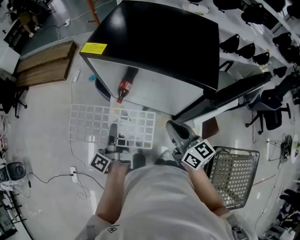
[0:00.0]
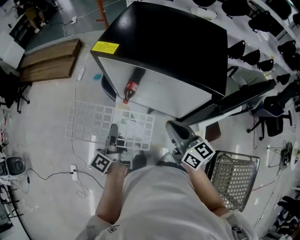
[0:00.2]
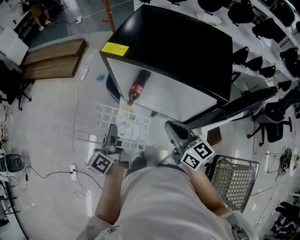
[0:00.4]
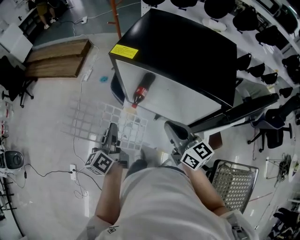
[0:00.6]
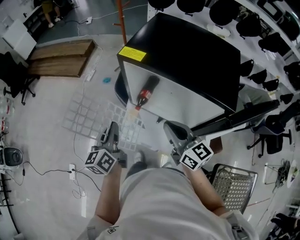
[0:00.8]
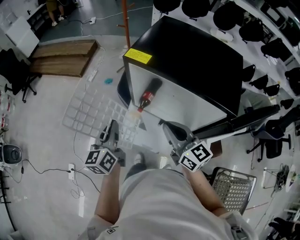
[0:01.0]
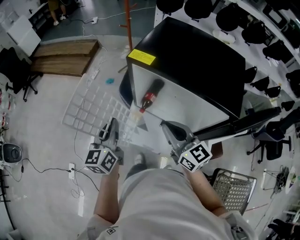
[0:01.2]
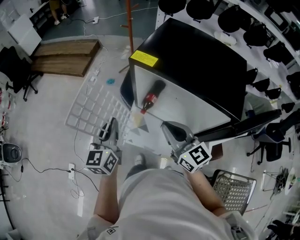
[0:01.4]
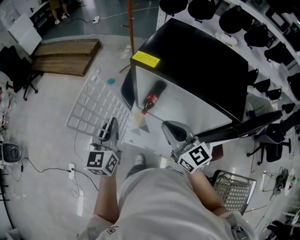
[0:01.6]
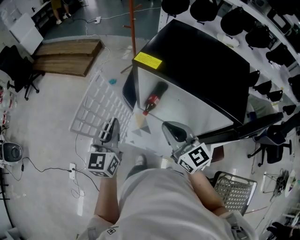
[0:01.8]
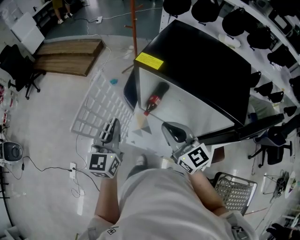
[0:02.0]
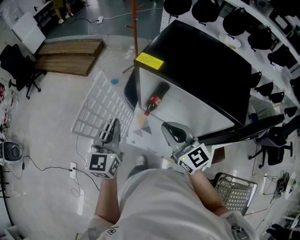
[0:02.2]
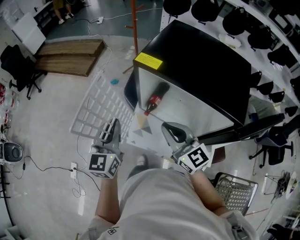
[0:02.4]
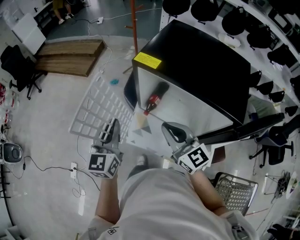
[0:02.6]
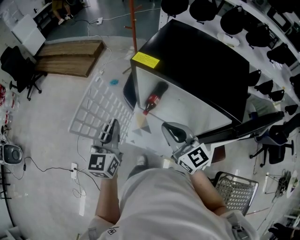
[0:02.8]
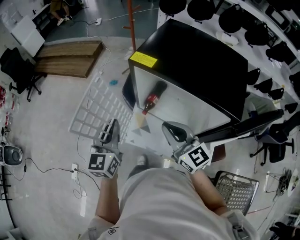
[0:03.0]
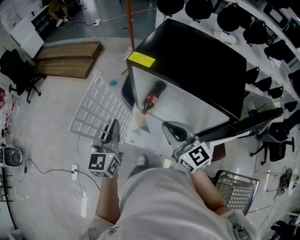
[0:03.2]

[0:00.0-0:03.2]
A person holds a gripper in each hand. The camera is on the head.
0:00.0 to 0:01.6: The right gripper is displaced to the left, forward and upward by some 15 cm, and rotates roughly 20 degrees, while the left gripper moves upward, to the left and forward, approximately 15 cm, and twists some 70 degrees clockwise, seen from behind.
0:01.6 to 0:03.2: The grippers stay close to where they were, moving slightly.

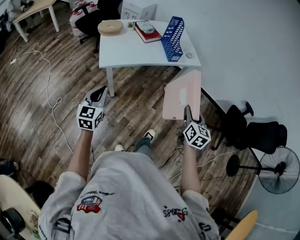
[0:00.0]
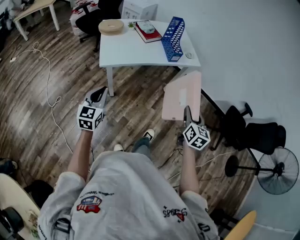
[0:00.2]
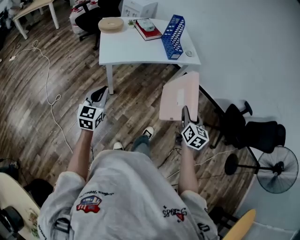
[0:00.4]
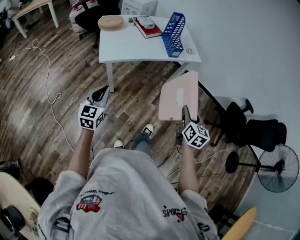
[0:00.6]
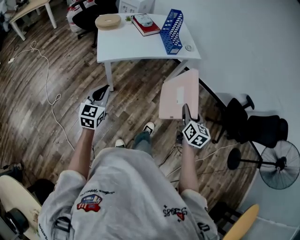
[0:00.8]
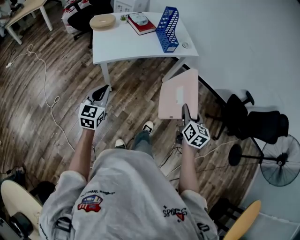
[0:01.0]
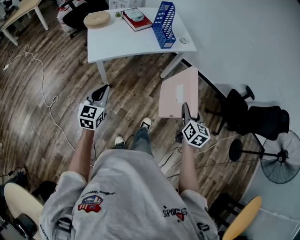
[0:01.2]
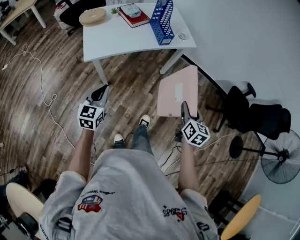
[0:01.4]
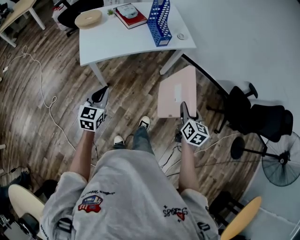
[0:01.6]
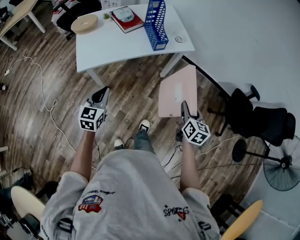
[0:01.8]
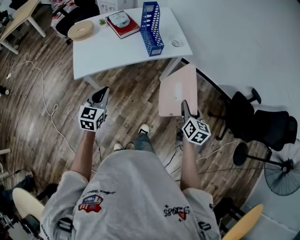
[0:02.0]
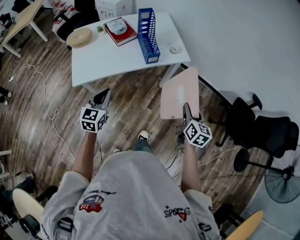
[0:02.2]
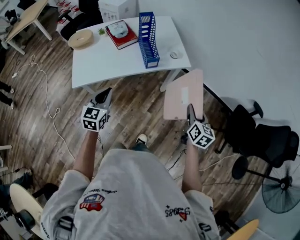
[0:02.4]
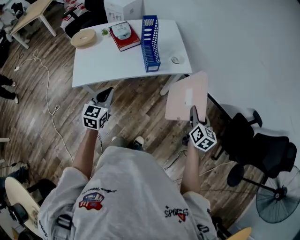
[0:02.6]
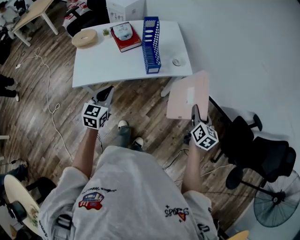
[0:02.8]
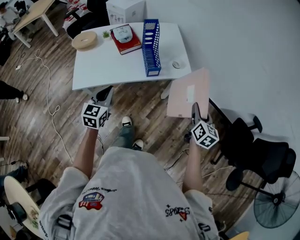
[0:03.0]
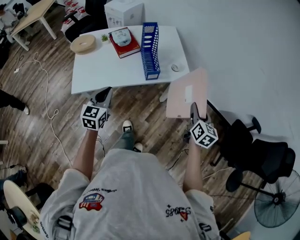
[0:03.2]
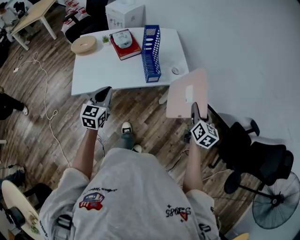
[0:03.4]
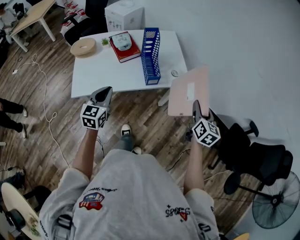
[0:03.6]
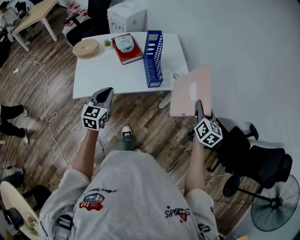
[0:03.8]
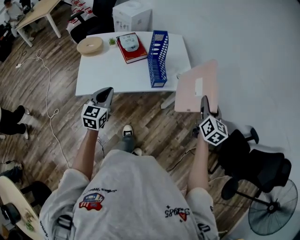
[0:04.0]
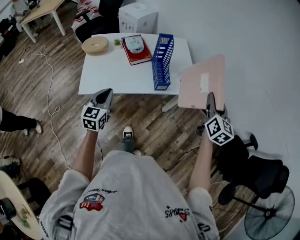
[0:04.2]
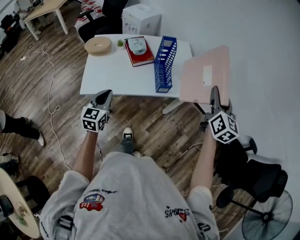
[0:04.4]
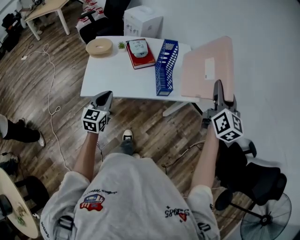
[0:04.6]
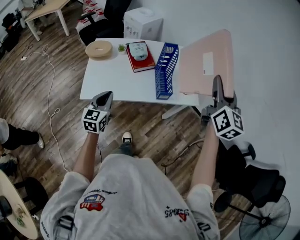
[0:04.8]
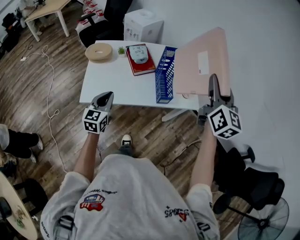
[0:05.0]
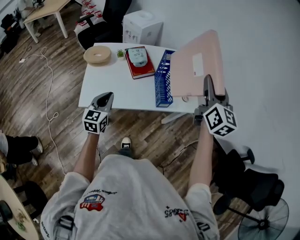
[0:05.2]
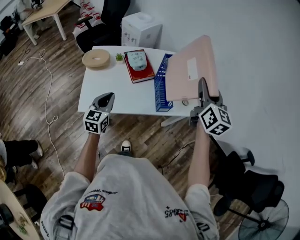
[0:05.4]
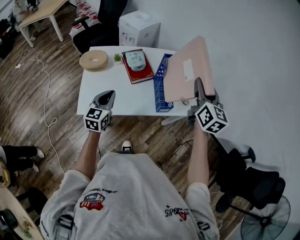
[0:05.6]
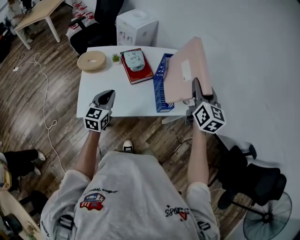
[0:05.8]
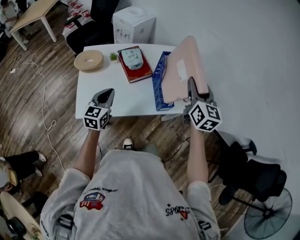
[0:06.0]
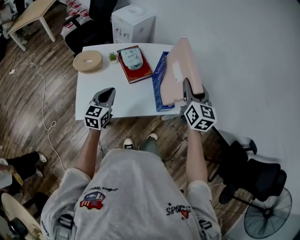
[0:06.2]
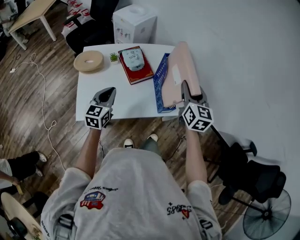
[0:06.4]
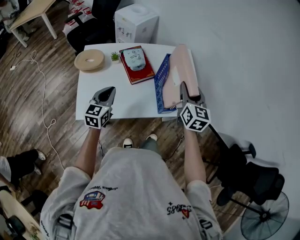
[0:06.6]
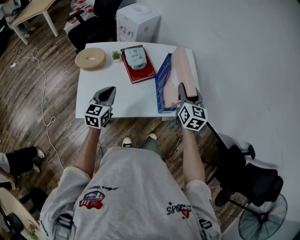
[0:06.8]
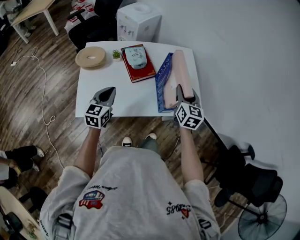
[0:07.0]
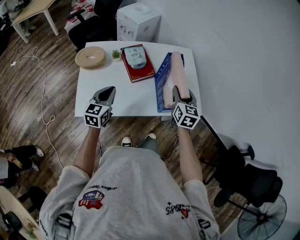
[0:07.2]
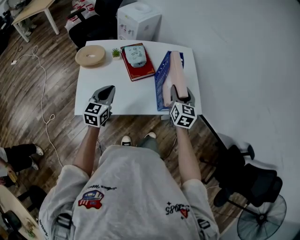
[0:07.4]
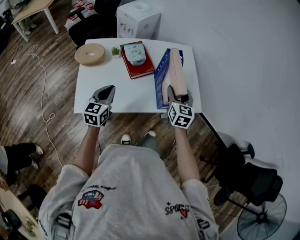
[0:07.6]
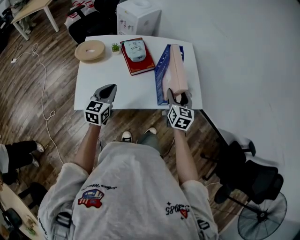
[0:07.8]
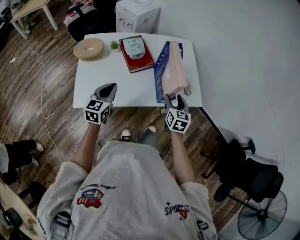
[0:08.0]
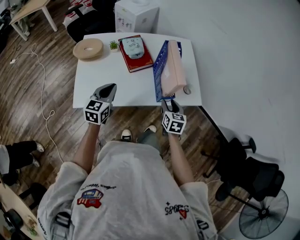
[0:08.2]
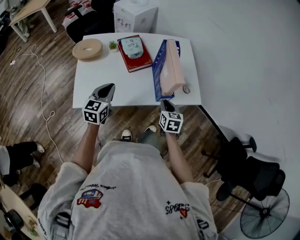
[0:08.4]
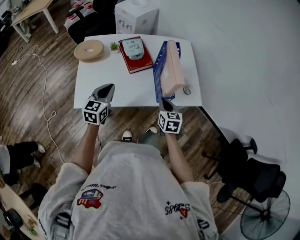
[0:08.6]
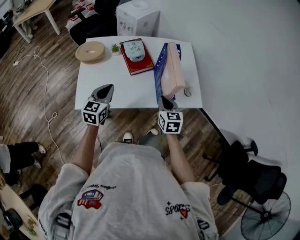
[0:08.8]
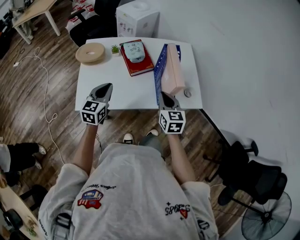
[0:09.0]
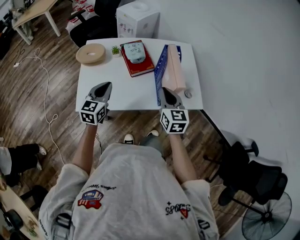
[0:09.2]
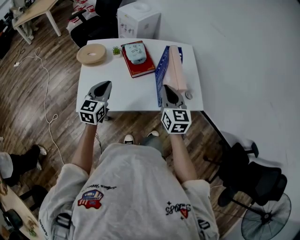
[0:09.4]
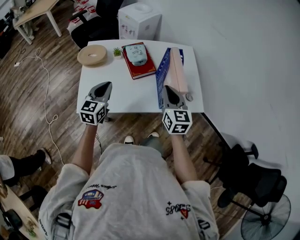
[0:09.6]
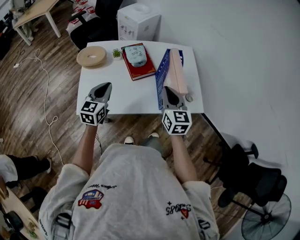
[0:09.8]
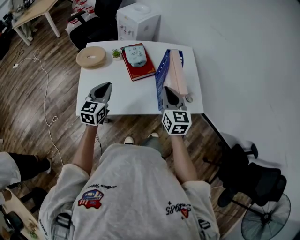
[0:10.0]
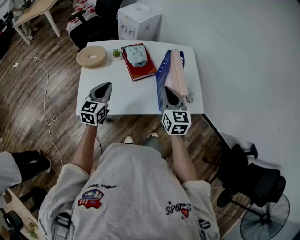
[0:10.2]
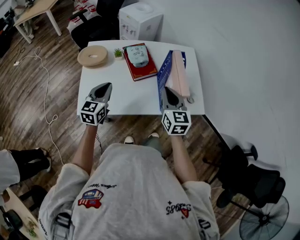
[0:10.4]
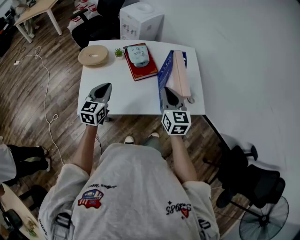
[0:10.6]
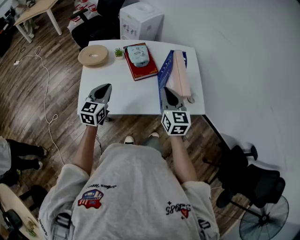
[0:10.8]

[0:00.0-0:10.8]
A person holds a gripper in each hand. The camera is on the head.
0:00.0 to 0:01.6: The left gripper heads to the right, forward and downward, covering some 15 cm, while the right gripper shifts roughly 10 cm to the right, downward and forward.
0:01.6 to 0:03.0: The two grippers go about 30 cm forward and to the right.
0:03.0 to 0:04.6: The left gripper goes roughly 10 cm to the left. The right gripper is displaced upward, to the left and forward by approximately 30 cm, and rotates approximately 30 degrees.
0:04.6 to 0:06.2: The right gripper heads forward, to the left and downward, covering about 25 cm; the left gripper shifts about 20 cm forward.
0:06.2 to 0:07.8: The right gripper heads downward, covering some 15 cm, and opens.
0:07.8 to 0:09.2: The right gripper goes approximately 5 cm to the left, travels downward and back again, about 10 cm each way, and closes its fingers.
0:09.2 to 0:10.8: The grippers make only small movements.

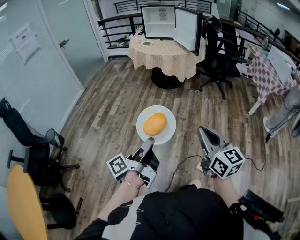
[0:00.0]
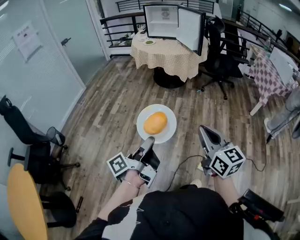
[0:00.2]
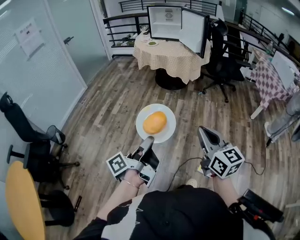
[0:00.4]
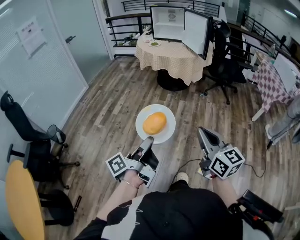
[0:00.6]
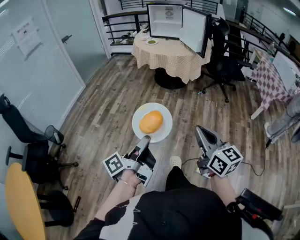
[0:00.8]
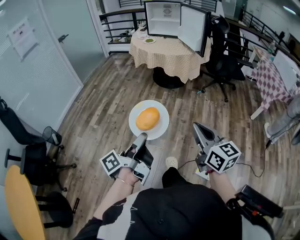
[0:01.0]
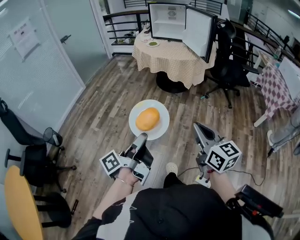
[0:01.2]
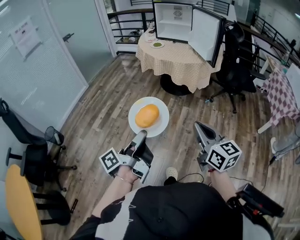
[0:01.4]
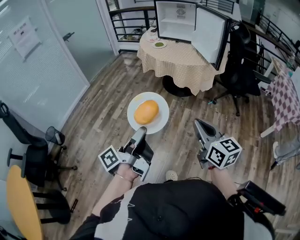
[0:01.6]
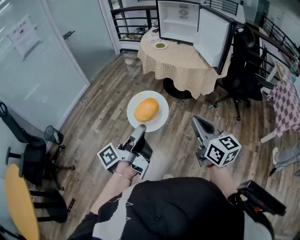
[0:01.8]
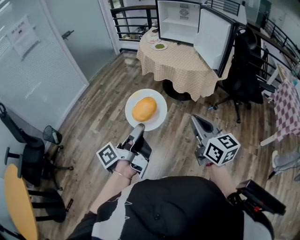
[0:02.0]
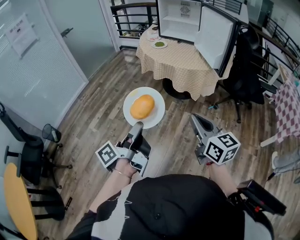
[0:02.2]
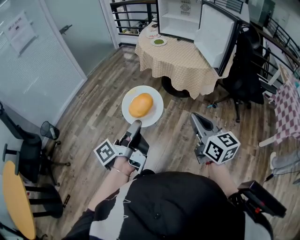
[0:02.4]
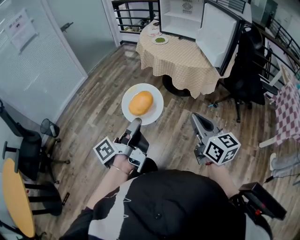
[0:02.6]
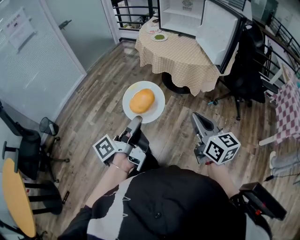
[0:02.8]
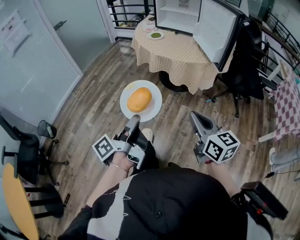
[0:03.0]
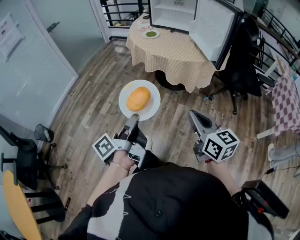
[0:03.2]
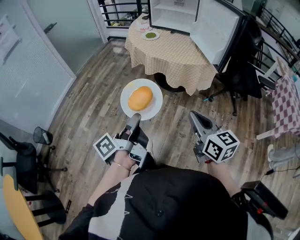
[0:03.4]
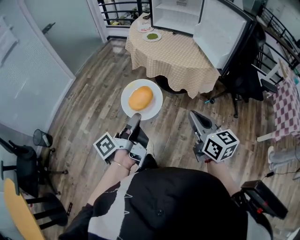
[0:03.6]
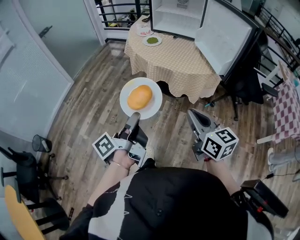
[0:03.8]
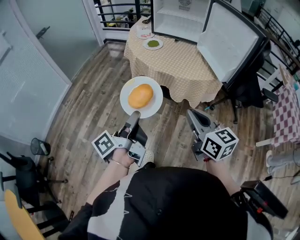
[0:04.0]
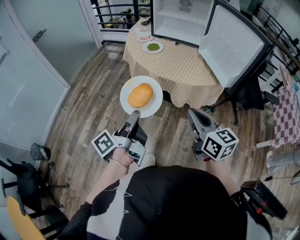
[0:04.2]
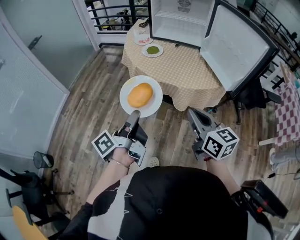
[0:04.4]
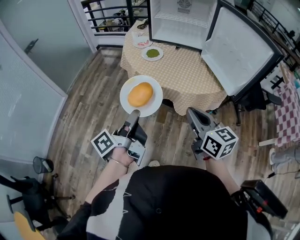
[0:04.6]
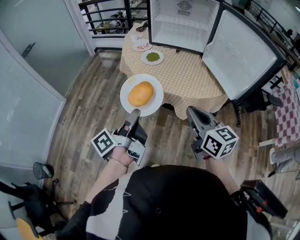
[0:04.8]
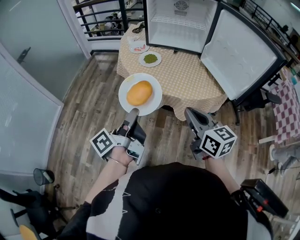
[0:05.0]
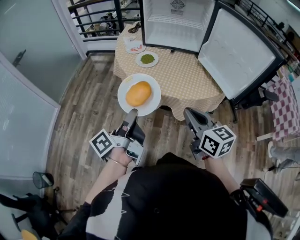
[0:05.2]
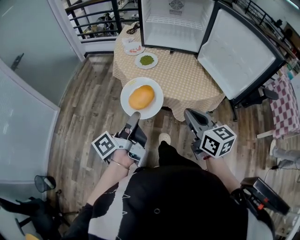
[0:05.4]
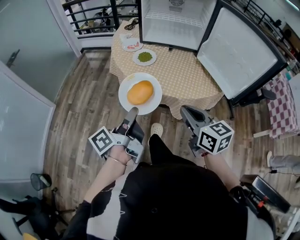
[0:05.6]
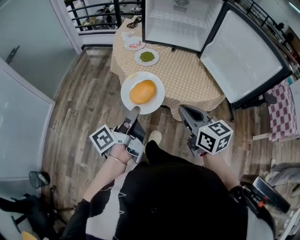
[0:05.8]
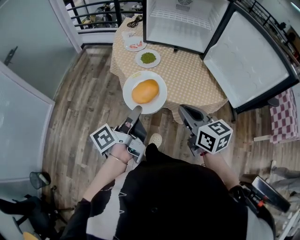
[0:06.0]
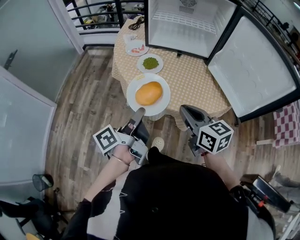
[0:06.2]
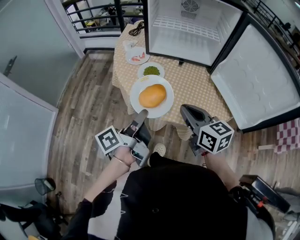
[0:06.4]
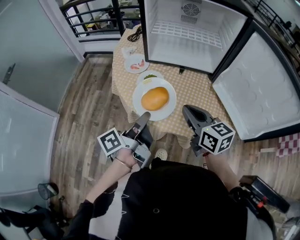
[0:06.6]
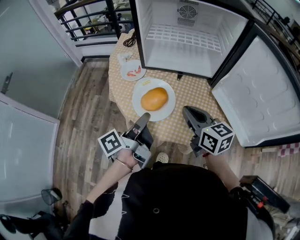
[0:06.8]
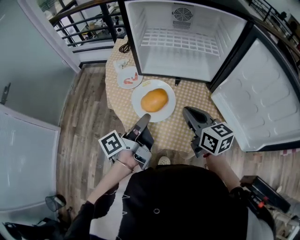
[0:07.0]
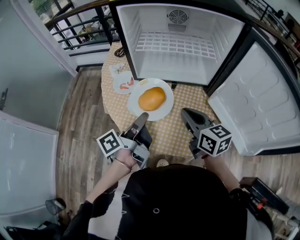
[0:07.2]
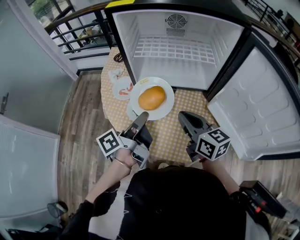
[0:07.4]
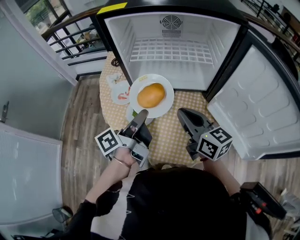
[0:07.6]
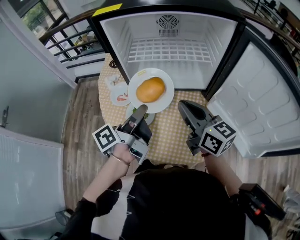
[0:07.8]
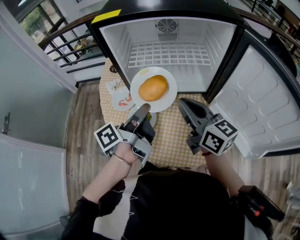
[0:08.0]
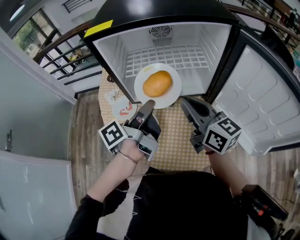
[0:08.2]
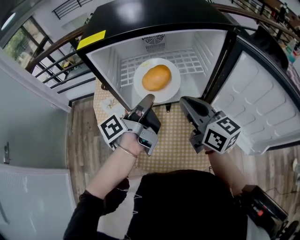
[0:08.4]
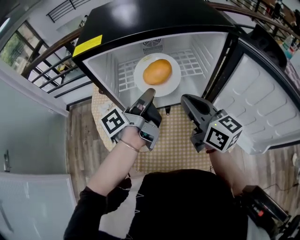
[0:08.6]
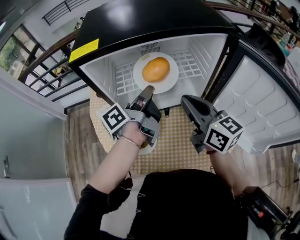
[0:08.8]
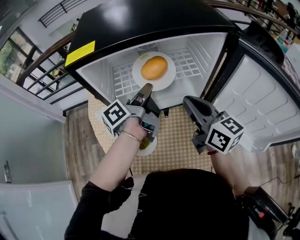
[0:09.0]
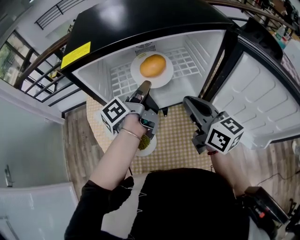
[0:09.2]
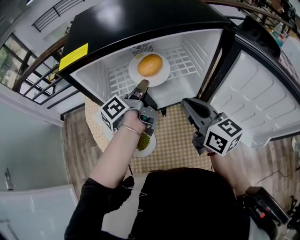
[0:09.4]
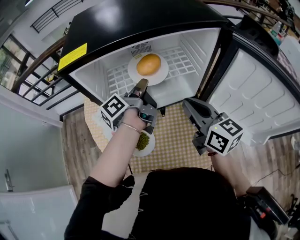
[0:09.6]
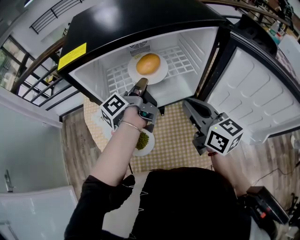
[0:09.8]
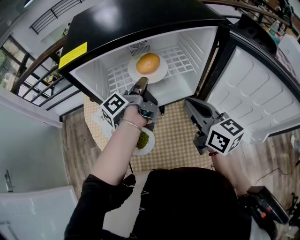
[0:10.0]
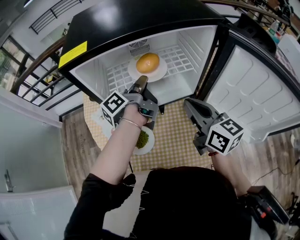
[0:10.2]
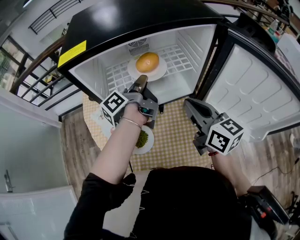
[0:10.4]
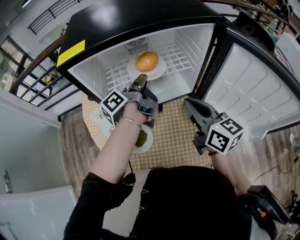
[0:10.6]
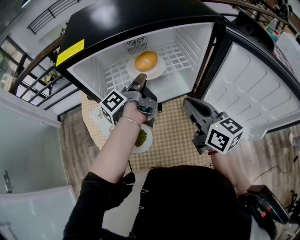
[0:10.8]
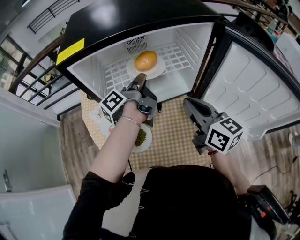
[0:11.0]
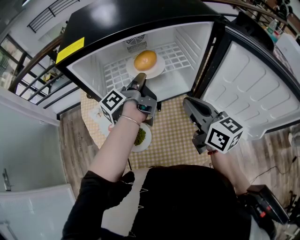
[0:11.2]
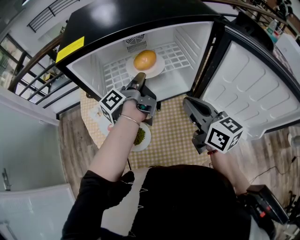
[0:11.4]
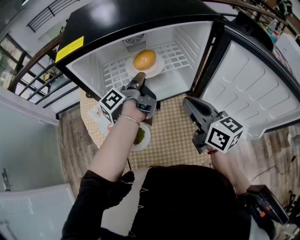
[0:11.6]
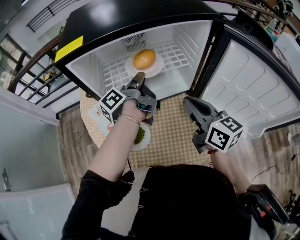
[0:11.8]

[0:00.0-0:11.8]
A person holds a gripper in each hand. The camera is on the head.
0:00.0 to 0:01.4: The right gripper changes place by roughly 25 cm.
0:01.4 to 0:03.0: The right gripper changes place by approximately 20 cm.
0:03.0 to 0:04.4: The right gripper changes place by roughly 30 cm.
0:04.4 to 0:06.0: The right gripper moves some 20 cm.
0:06.0 to 0:07.4: The right gripper ends up some 25 cm from where it was.
0:07.4 to 0:08.8: The right gripper ends up some 15 cm from where it was.
